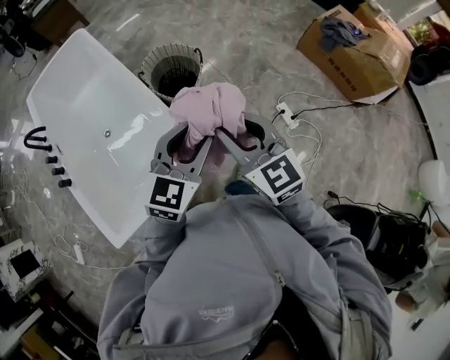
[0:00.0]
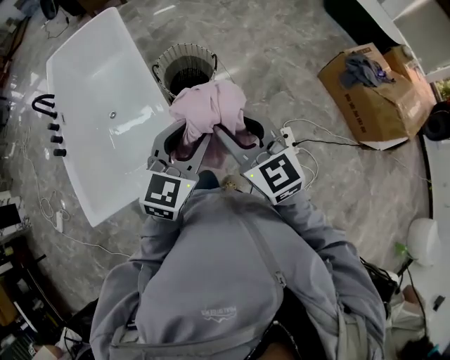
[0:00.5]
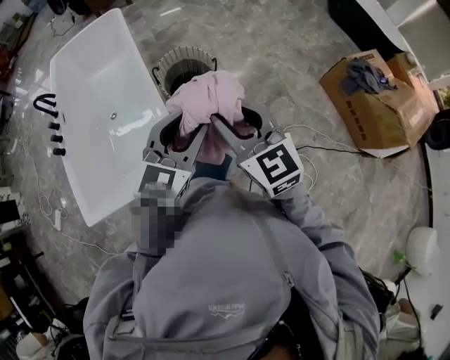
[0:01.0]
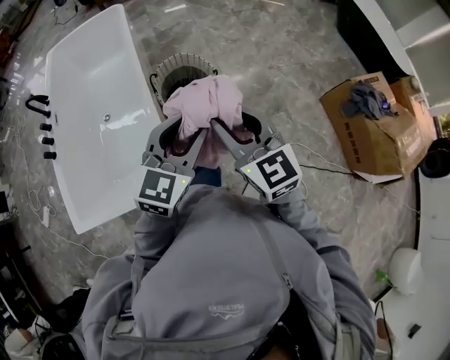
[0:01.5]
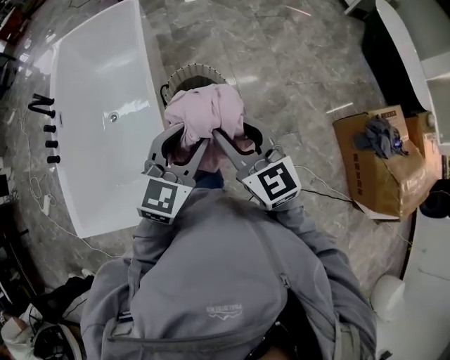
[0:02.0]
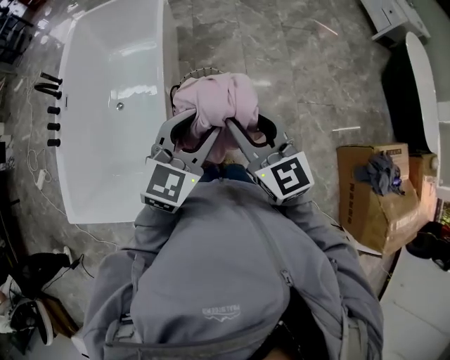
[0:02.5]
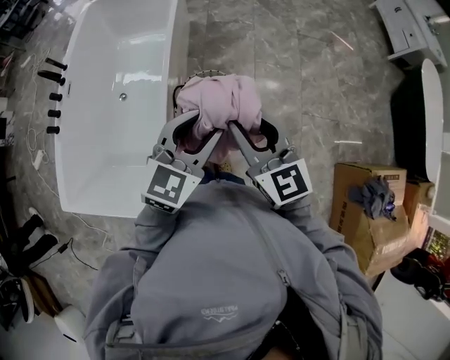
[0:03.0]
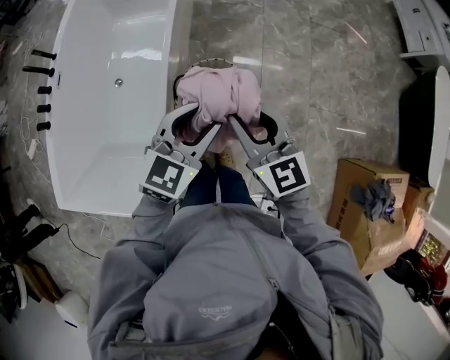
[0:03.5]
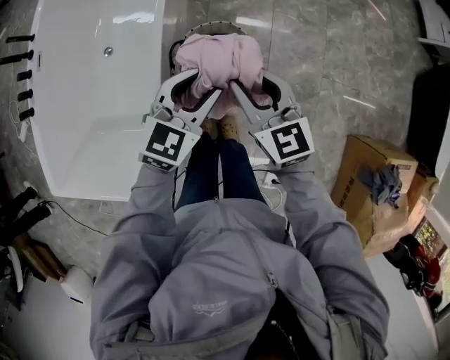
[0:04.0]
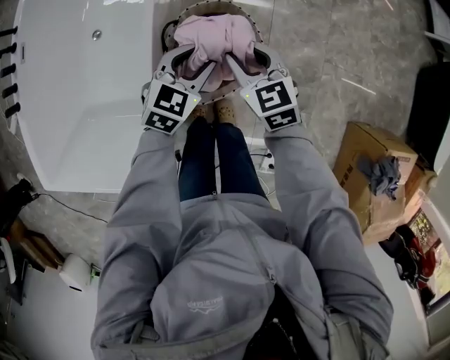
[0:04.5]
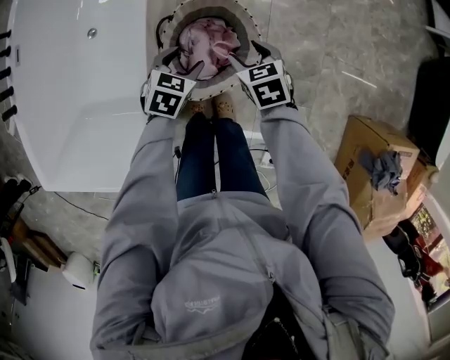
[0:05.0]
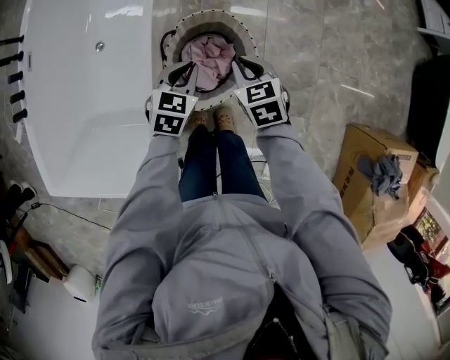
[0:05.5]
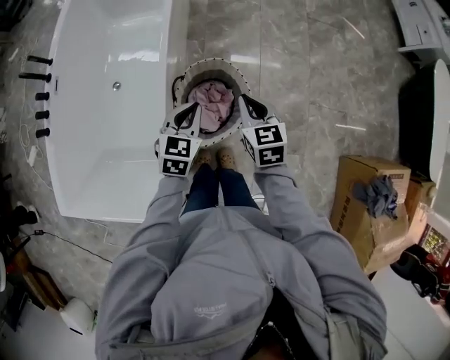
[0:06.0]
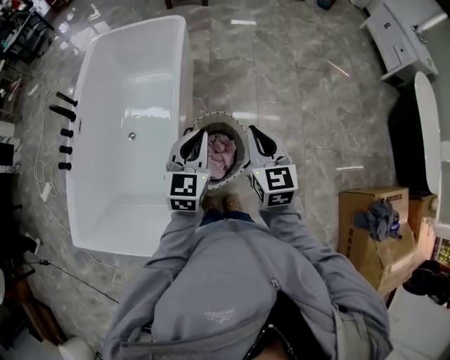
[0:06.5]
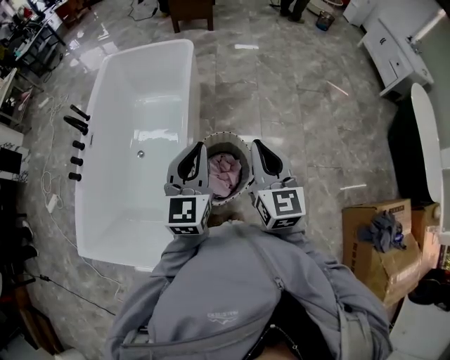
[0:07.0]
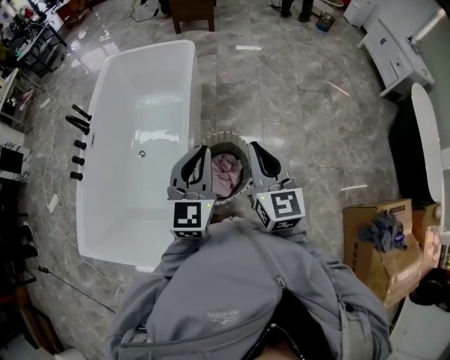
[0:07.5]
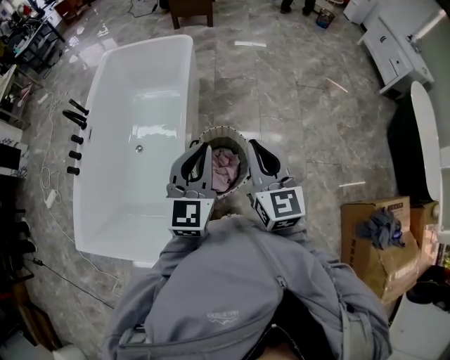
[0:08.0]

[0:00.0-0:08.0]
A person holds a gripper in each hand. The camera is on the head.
0:00.0 to 0:02.0: Both grippers move forward, some 30 cm. The right gripper turns by roughly 20 degrees; the left gripper rotates some 20 degrees.
0:02.0 to 0:04.0: The two grippers go some 35 cm forward and downward.
0:04.0 to 0:06.0: The left gripper goes downward and returns, some 20 cm each way, and closes up. Meanwhile the right gripper travels downward and back again, approximately 20 cm each way, and changes its angle by about 20 degrees.
0:06.0 to 0:08.0: The two grippers go some 25 cm upward. The right gripper turns by some 30 degrees; the left gripper angles its fingers upward, by about 30 degrees.

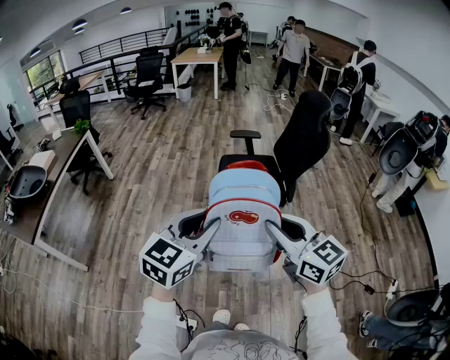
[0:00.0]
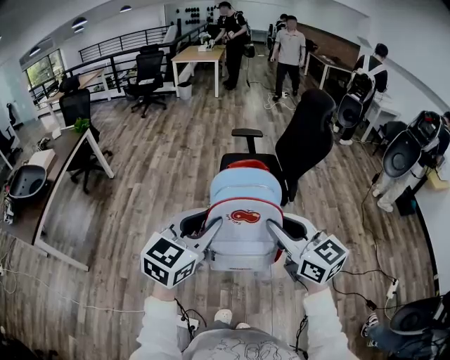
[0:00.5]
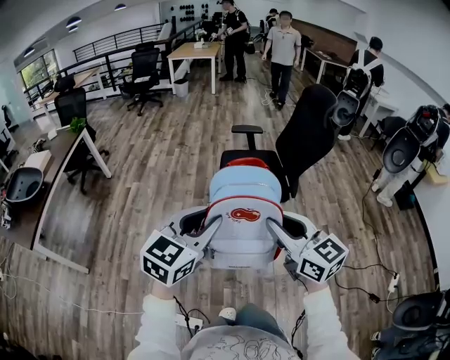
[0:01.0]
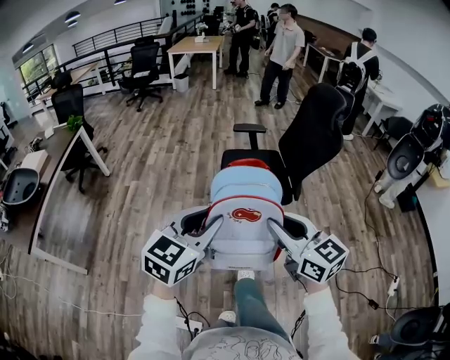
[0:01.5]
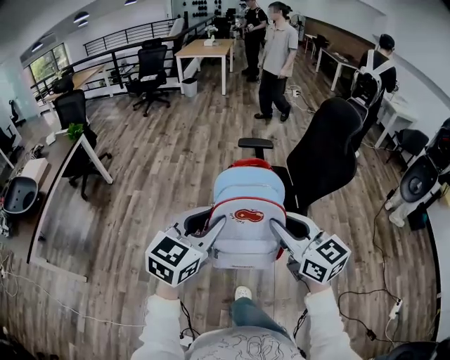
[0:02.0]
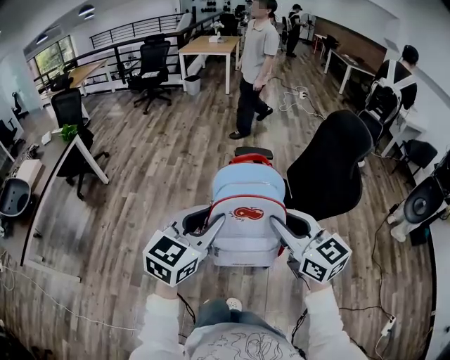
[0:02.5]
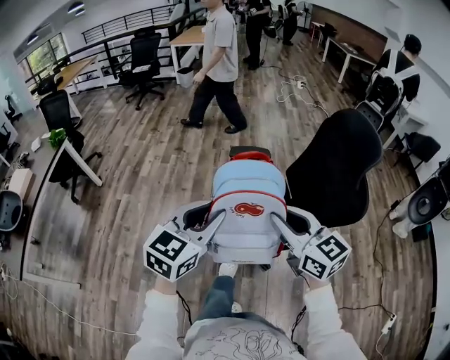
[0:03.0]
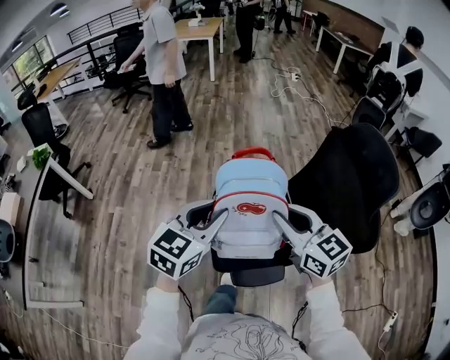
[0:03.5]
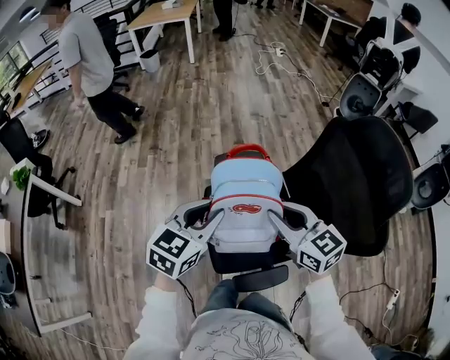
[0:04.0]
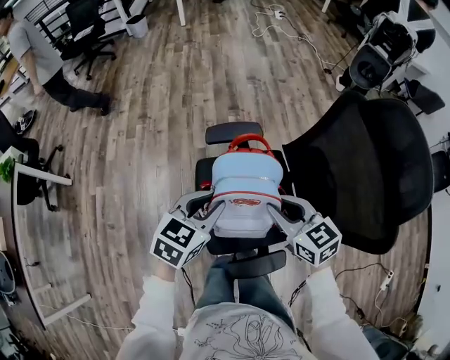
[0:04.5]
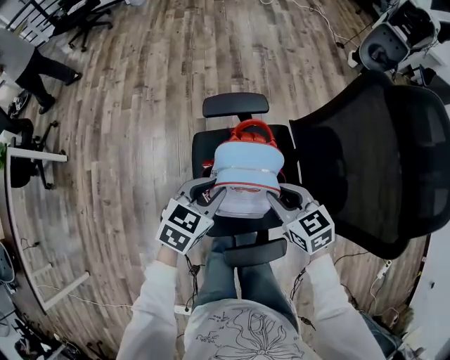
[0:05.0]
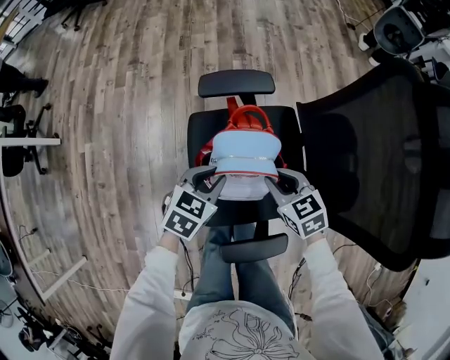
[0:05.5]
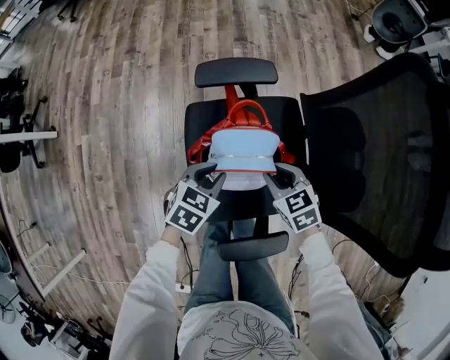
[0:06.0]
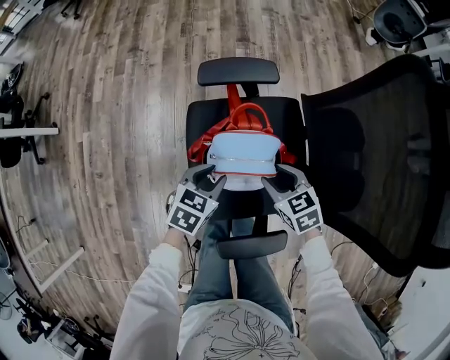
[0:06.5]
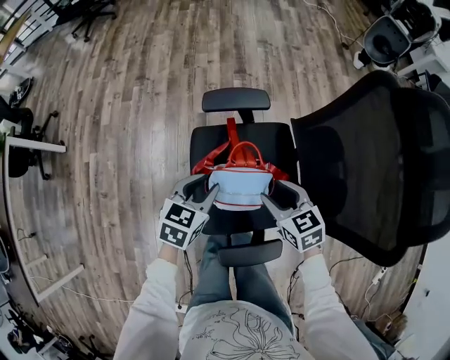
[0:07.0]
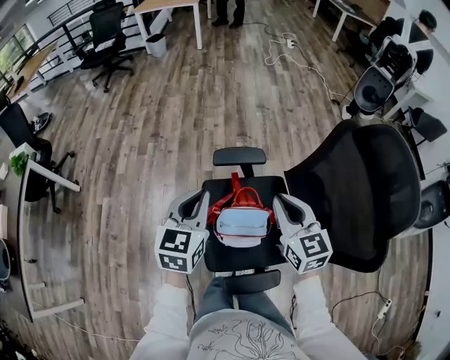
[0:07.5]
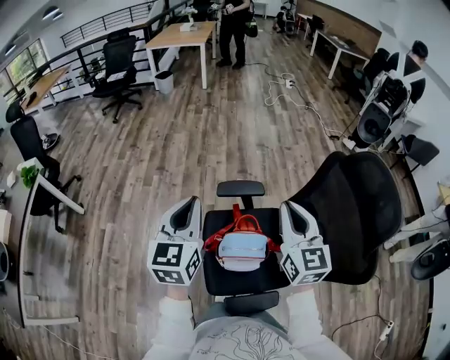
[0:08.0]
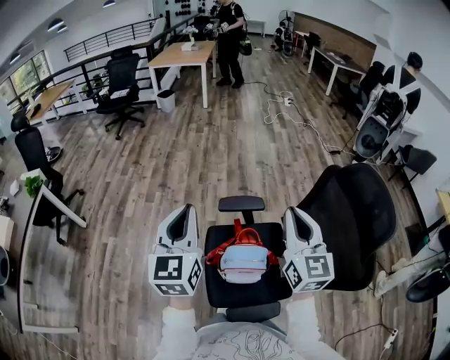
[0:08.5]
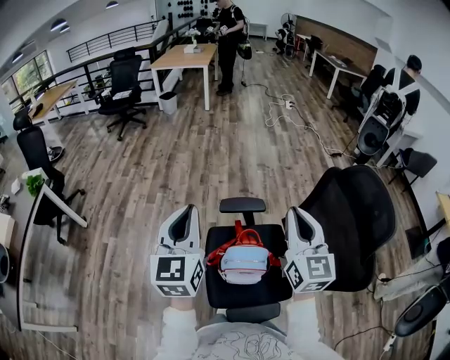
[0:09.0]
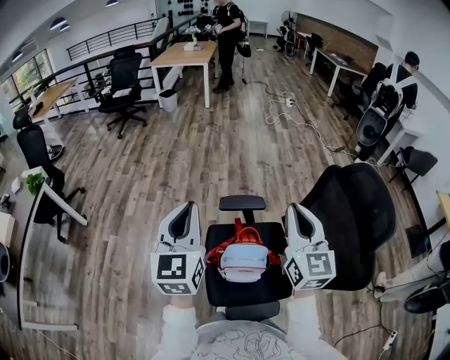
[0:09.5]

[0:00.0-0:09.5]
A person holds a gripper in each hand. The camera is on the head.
0:00.0 to 0:02.0: Both grippers travel together forward, roughly 25 cm.
0:02.0 to 0:04.0: The pair of grippers is taken forward, about 50 cm.
0:04.0 to 0:05.5: The grippers both shift downward by approximately 30 cm. The right gripper swivels some 30 degrees, while the left gripper swivels about 20 degrees.
0:05.5 to 0:07.5: The grippers both shift upward by approximately 25 cm. The left gripper turns by about 40 degrees, while the right gripper turns by roughly 30 degrees, and opens and closes again.
0:07.5 to 0:09.5: Both grippers move upward, approximately 20 cm. The left gripper rotates some 20 degrees; the right gripper rotates some 20 degrees.

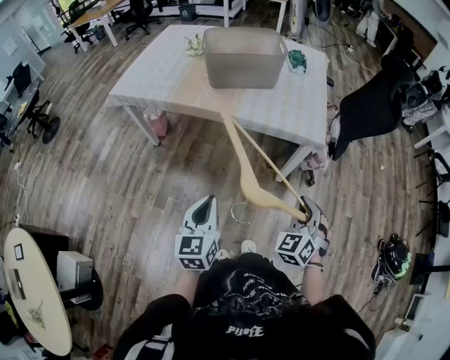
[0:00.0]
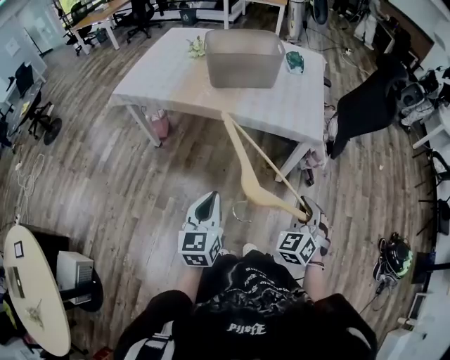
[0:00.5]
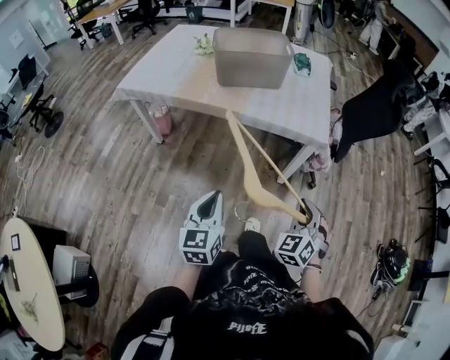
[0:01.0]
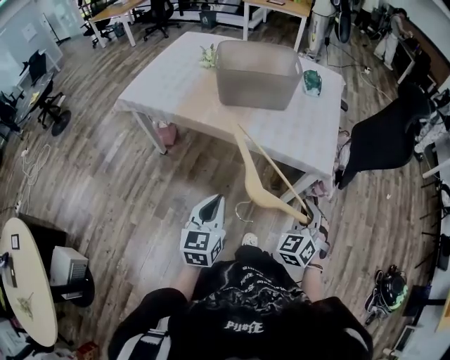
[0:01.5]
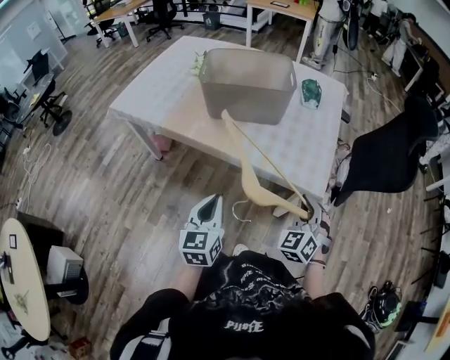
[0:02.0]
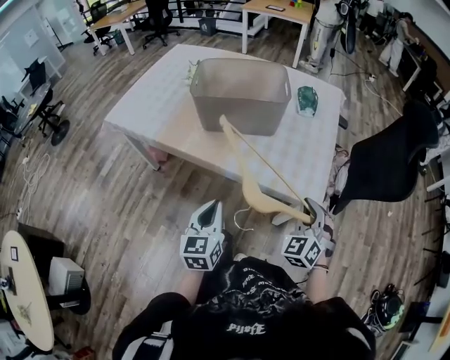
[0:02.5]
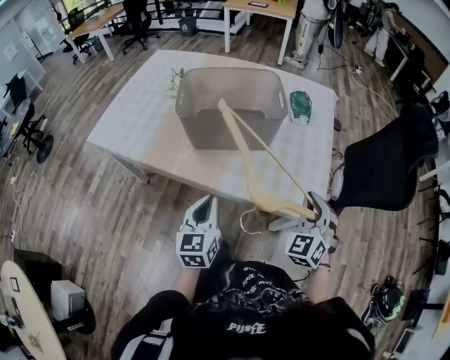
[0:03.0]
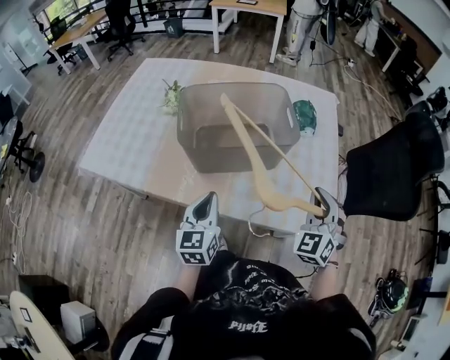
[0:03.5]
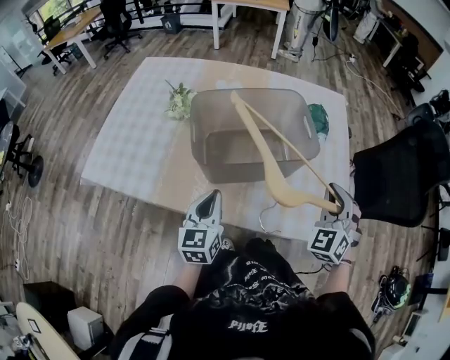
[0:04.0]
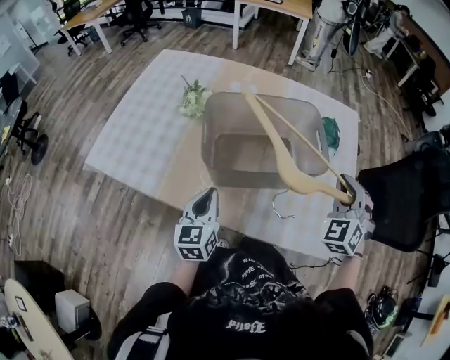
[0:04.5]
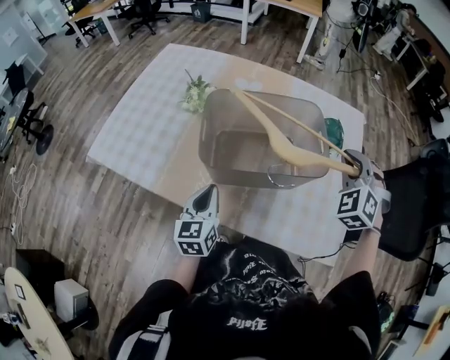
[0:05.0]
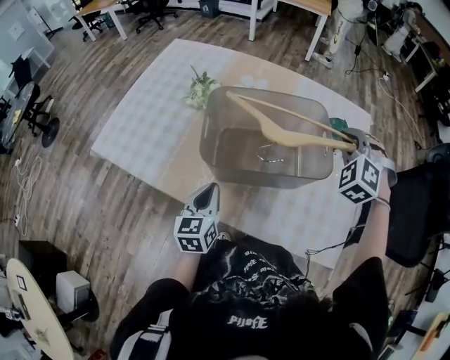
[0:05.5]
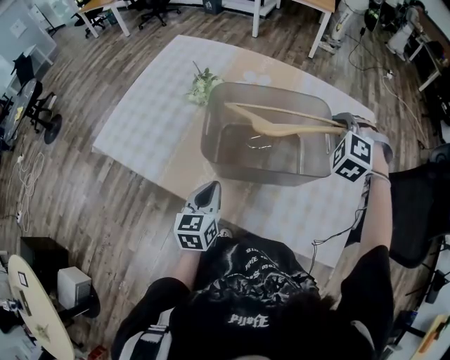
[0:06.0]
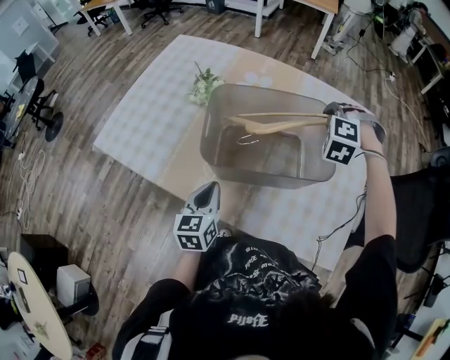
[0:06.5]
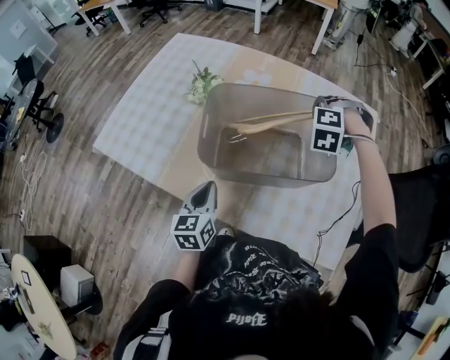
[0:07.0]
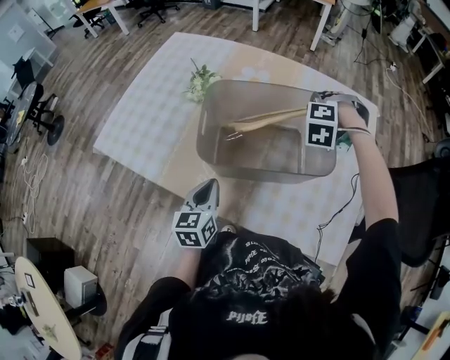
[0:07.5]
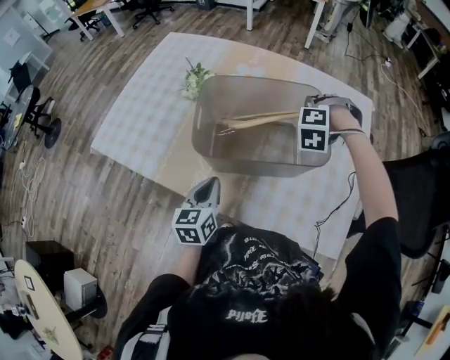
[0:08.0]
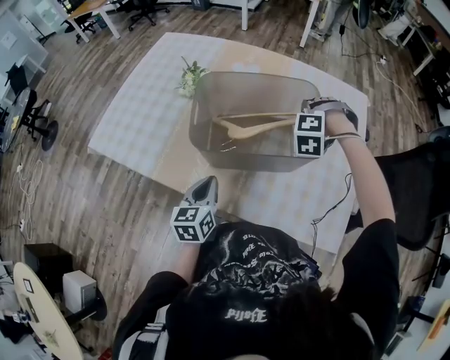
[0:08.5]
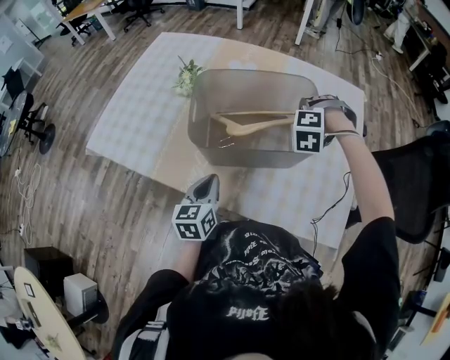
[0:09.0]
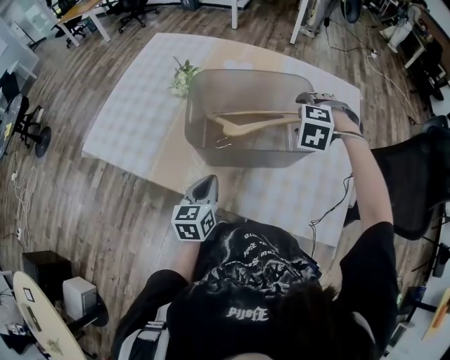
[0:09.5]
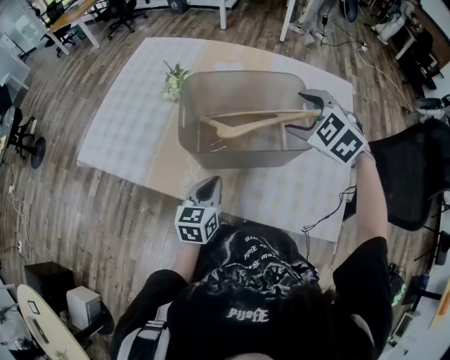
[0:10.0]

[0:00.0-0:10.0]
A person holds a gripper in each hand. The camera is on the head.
0:00.0 to 0:02.0: Both grippers travel together forward, about 25 cm.
0:02.0 to 0:04.0: Both grippers move forward and to the left, roughly 40 cm.
0:04.0 to 0:06.0: The right gripper goes roughly 25 cm forward, and changes its angle by roughly 50 degrees.
0:06.0 to 0:08.0: The right gripper moves downward, some 5 cm, and swivels about 20 degrees.
0:08.0 to 0:10.0: The right gripper travels backward and upward by about 10 cm, rotates roughly 50 degrees, and opens its fingers.
